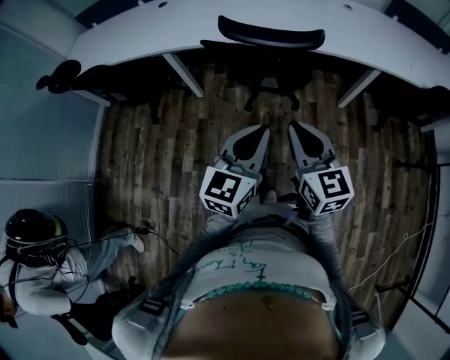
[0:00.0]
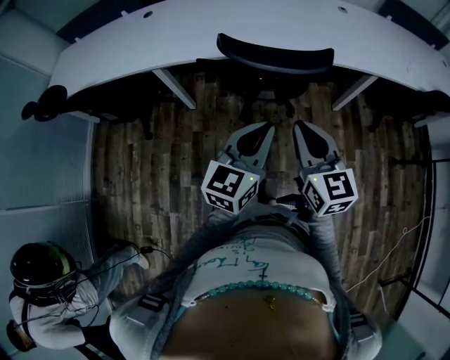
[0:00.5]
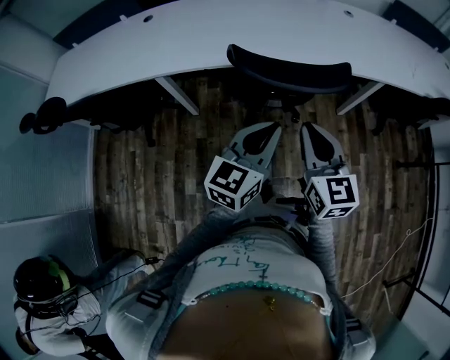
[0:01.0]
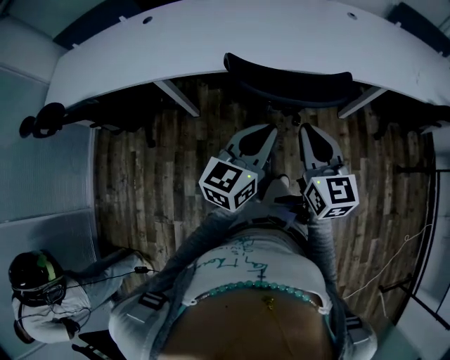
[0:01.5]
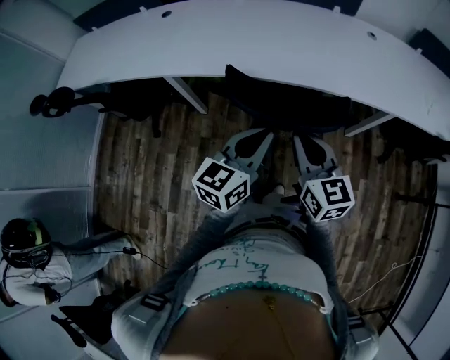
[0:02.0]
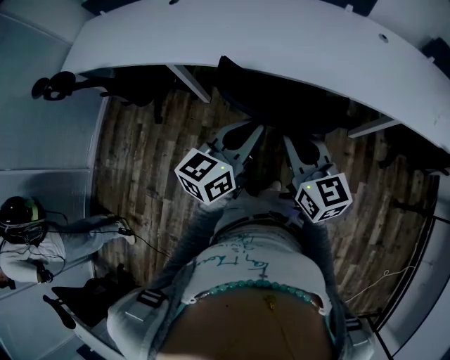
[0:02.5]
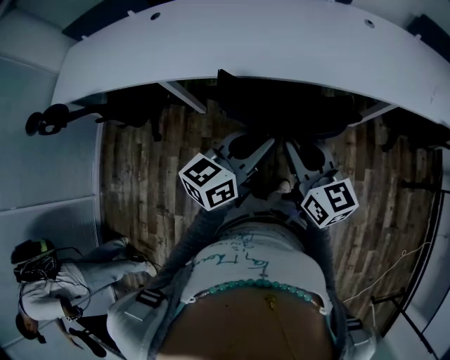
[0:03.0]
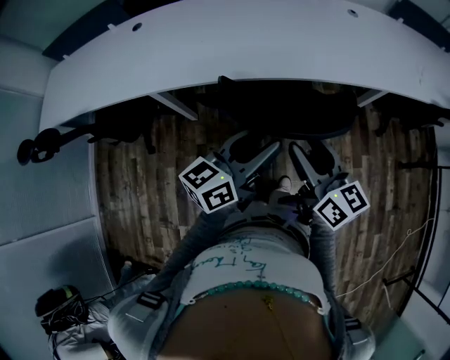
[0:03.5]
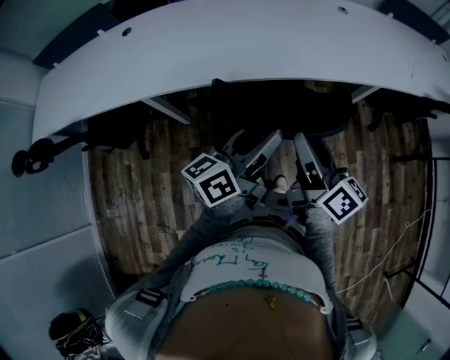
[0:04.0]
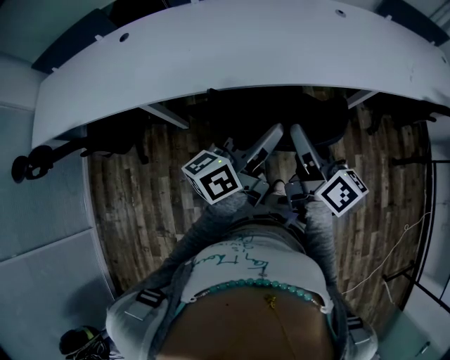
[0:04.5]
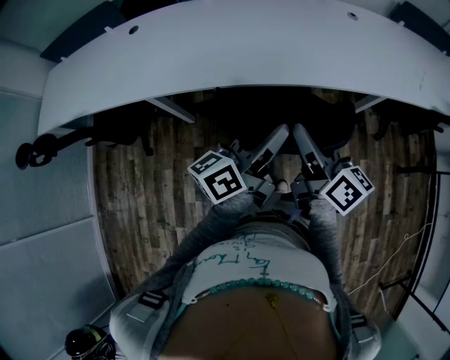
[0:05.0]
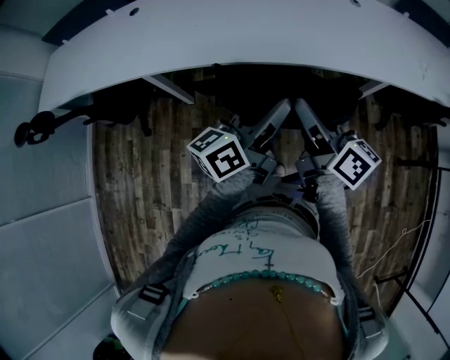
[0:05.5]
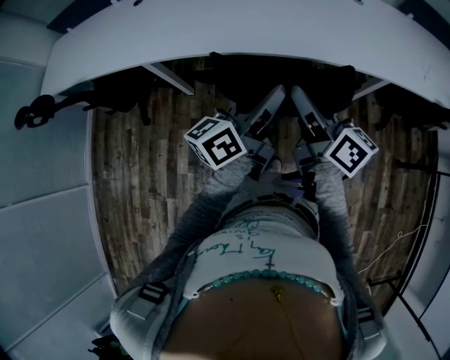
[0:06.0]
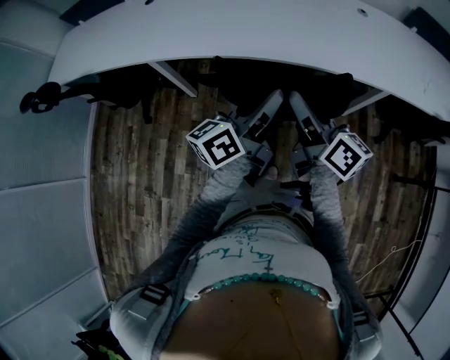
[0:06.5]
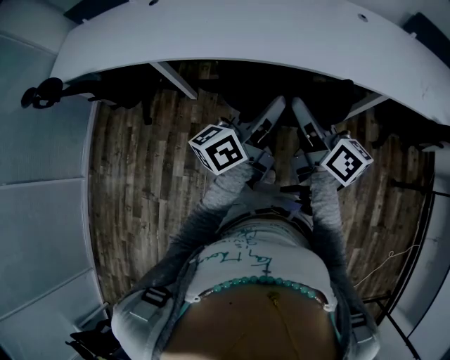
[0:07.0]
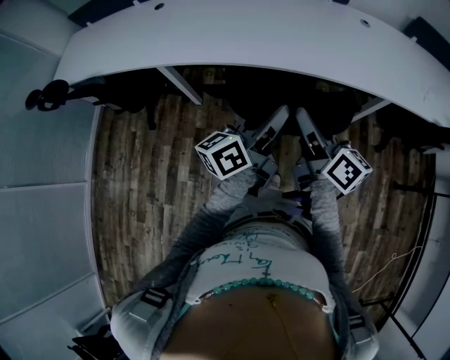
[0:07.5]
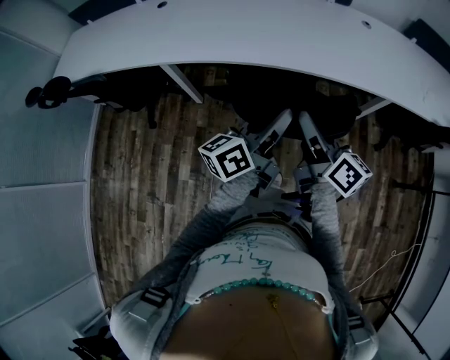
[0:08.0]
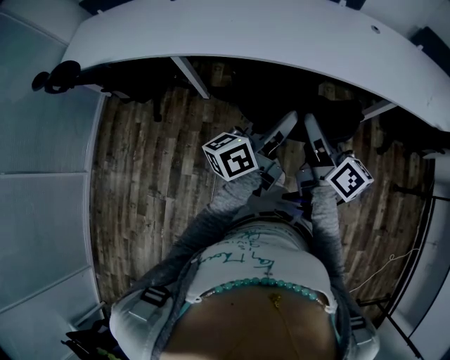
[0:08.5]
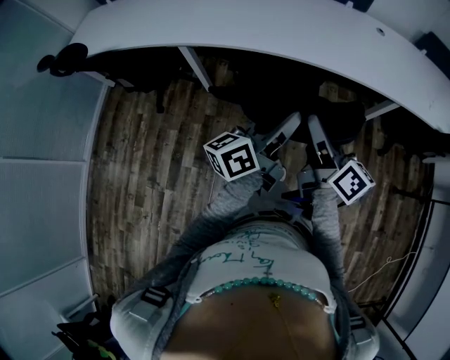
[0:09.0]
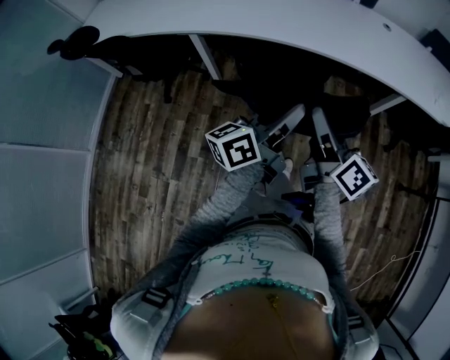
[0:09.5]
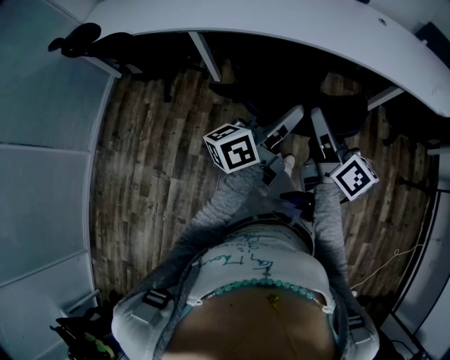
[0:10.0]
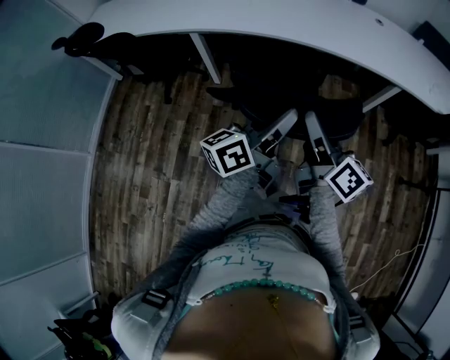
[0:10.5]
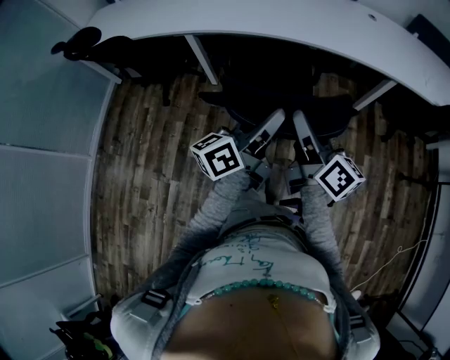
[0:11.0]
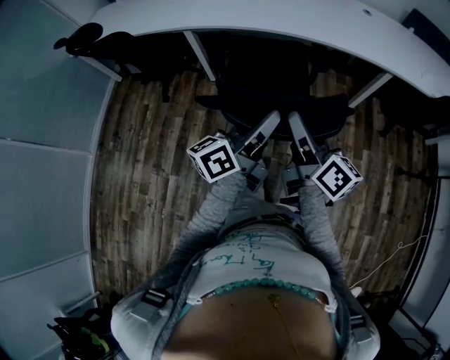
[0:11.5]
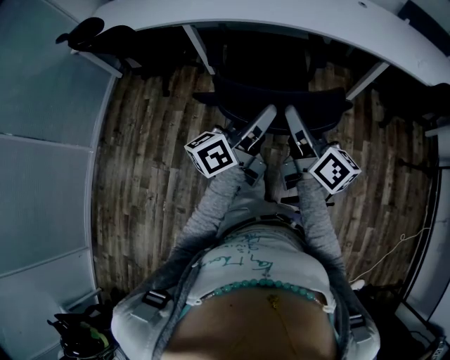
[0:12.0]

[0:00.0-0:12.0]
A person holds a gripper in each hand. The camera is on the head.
0:00.0 to 0:02.0: Both grippers travel together forward, some 20 cm.
0:02.0 to 0:04.0: The left gripper shifts by about 5 cm, changes its angle by about 30 degrees, and opens; the right gripper rotates around the line of its fingers by approximately 40 degrees, clockwise from behind, and opens up.
0:04.0 to 0:06.0: The right gripper changes place by some 5 cm; the left gripper shifts roughly 5 cm to the right.
0:06.0 to 0:08.0: The grippers make only small movements.
0:08.0 to 0:10.0: The two grippers go about 20 cm backward.
0:10.0 to 0:12.0: Both grippers move backward, approximately 15 cm.

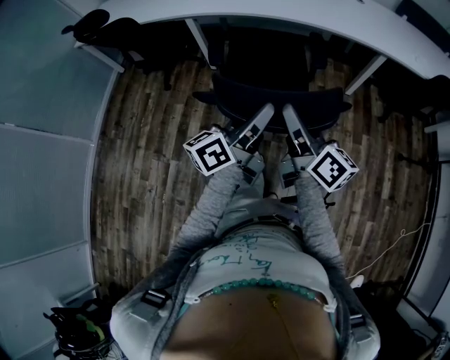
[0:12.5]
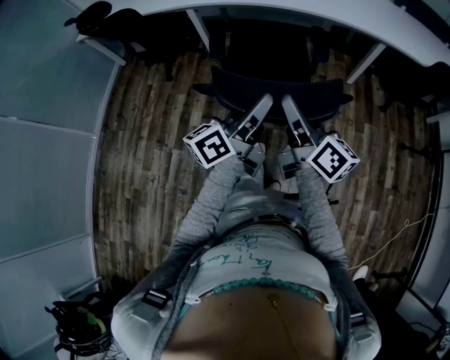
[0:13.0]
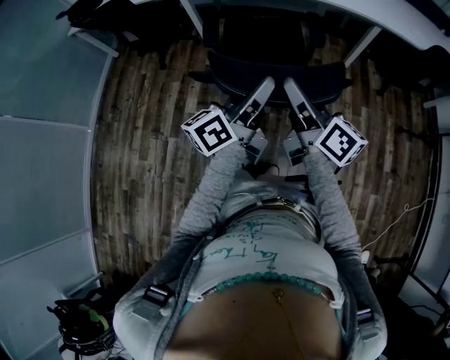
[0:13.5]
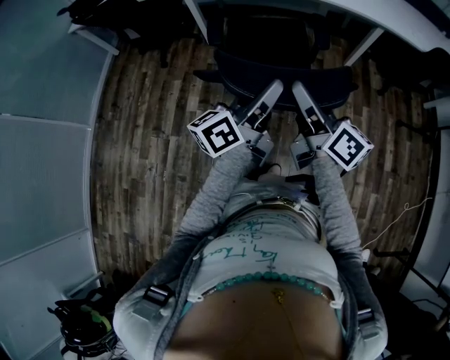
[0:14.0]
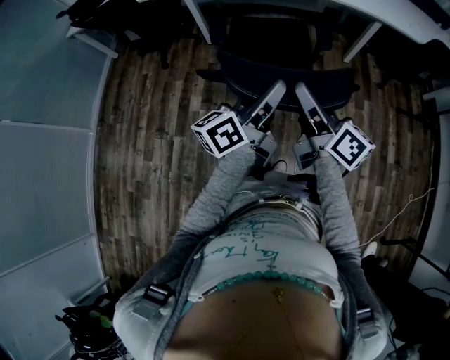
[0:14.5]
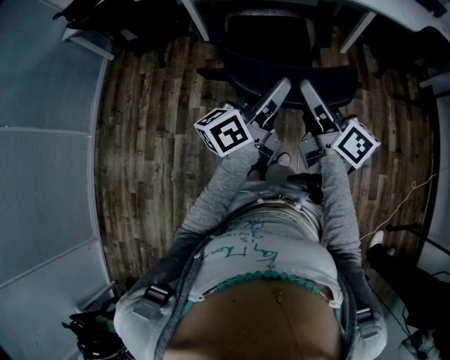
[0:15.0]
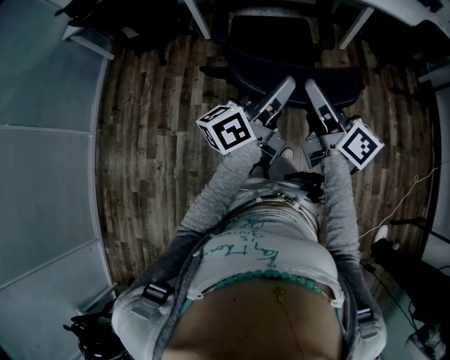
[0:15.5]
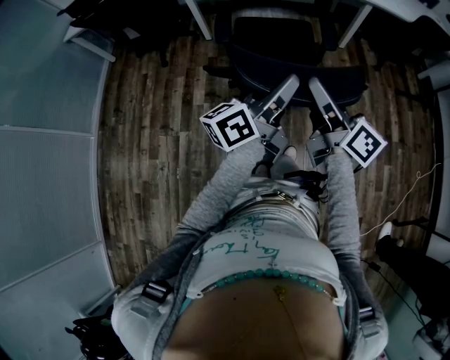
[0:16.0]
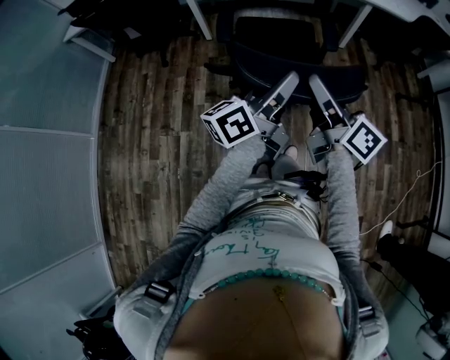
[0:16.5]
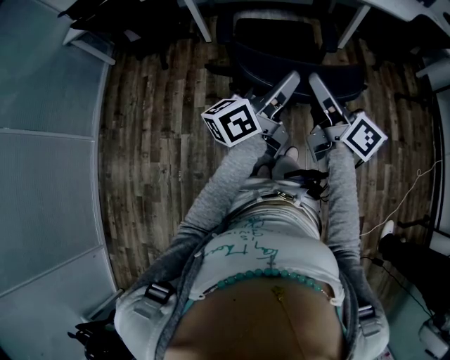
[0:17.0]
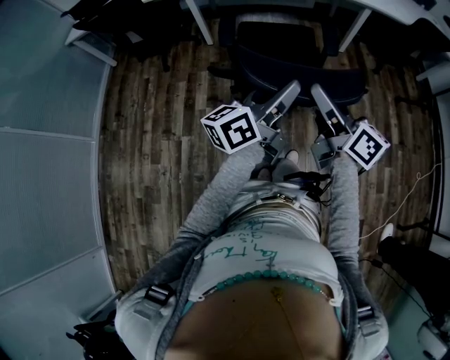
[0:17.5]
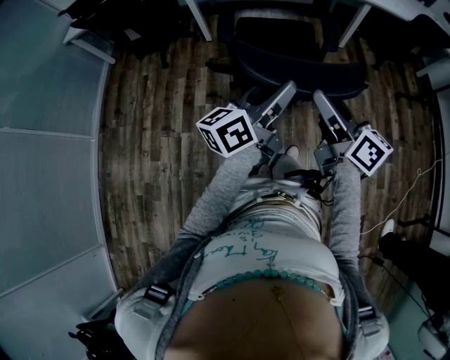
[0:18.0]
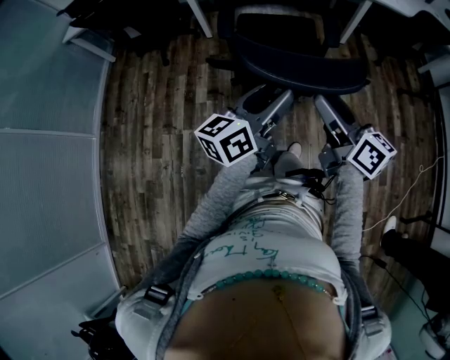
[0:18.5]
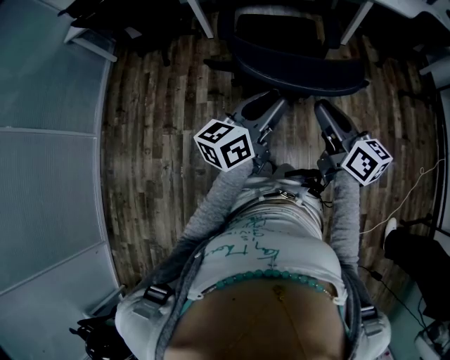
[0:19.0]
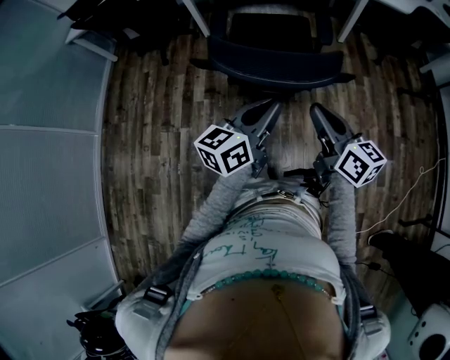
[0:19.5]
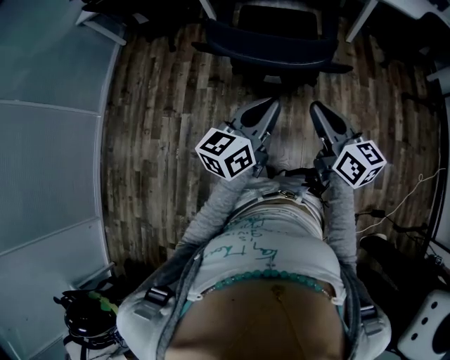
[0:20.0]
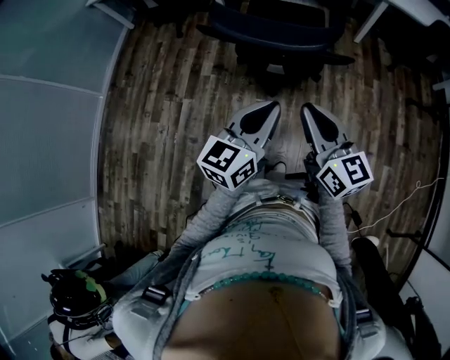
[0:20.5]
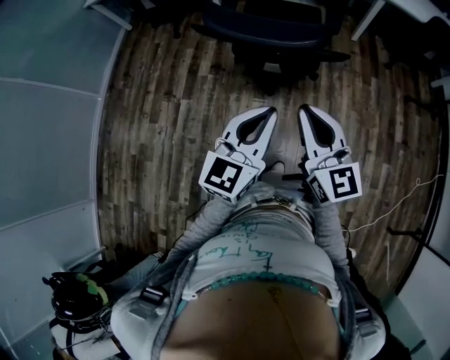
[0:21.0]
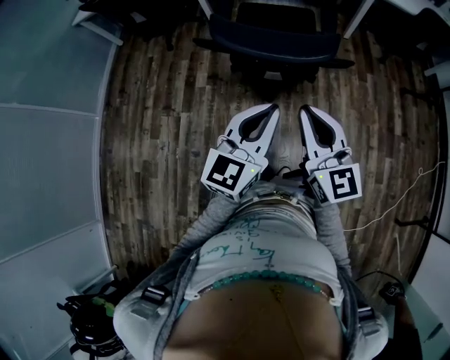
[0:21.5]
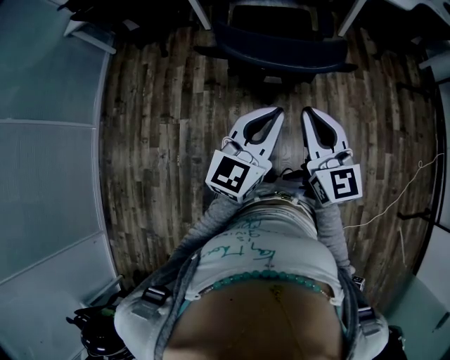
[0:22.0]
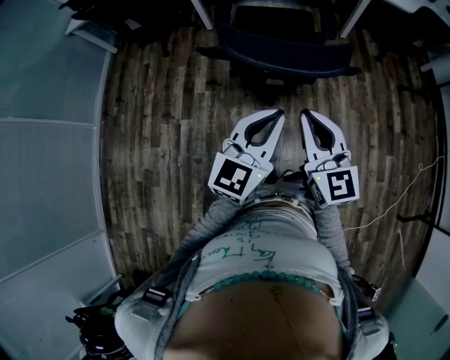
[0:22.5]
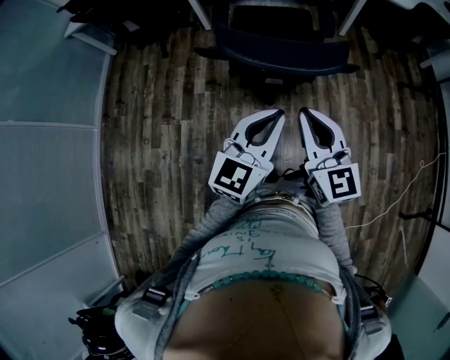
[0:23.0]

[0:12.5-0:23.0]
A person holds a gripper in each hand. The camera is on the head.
0:12.5 to 0:14.5: The two grippers go roughly 10 cm backward.
0:14.5 to 0:16.5: Both grippers travel together backward, some 10 cm.
0:16.5 to 0:19.0: The left gripper changes place by about 5 cm, and turns by roughly 20 degrees, while the right gripper goes roughly 5 cm downward and backward, and closes.
0:19.0 to 0:21.0: The right gripper is displaced backward by approximately 15 cm, and swivels approximately 30 degrees; the left gripper travels backward and to the right by some 20 cm, turns by some 30 degrees, and closes.
0:21.0 to 0:23.0: The right gripper goes roughly 5 cm to the left. Meanwhile the left gripper shifts about 5 cm forward.

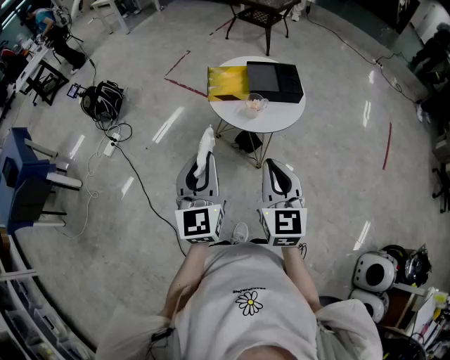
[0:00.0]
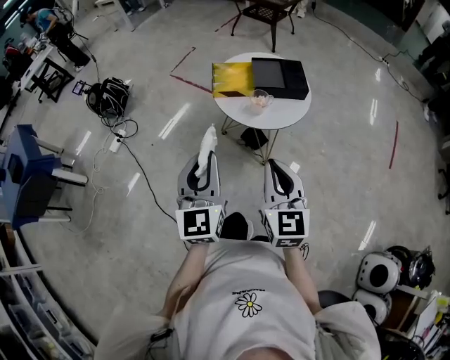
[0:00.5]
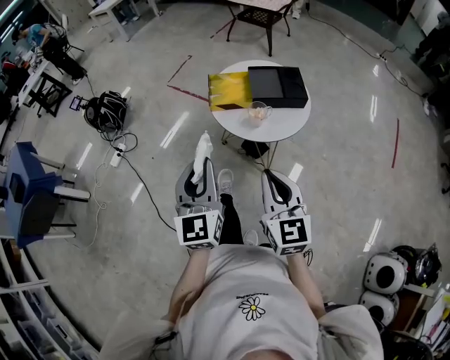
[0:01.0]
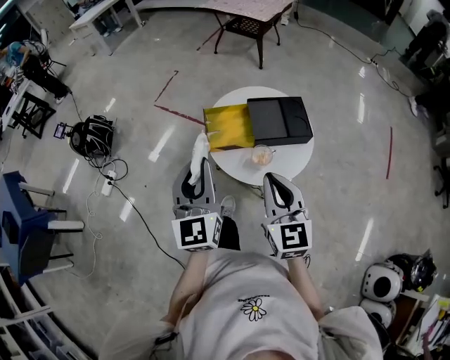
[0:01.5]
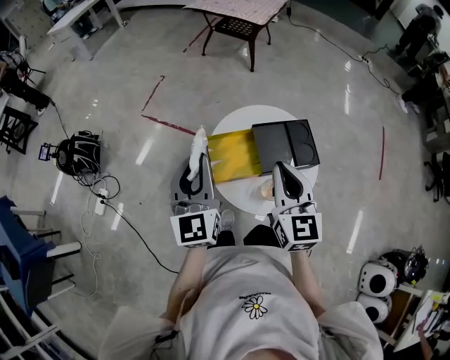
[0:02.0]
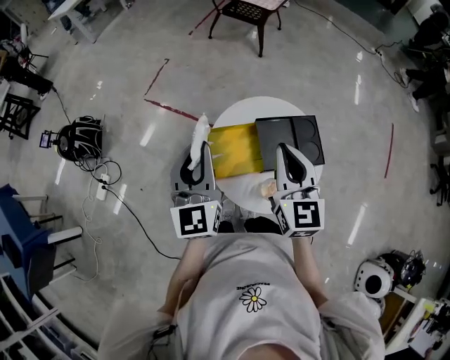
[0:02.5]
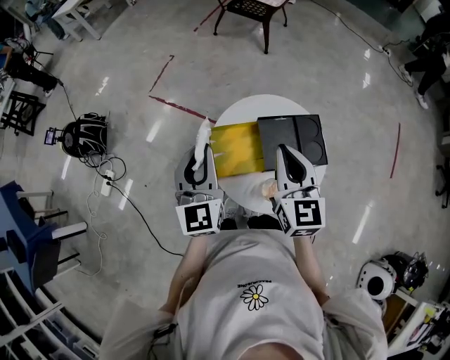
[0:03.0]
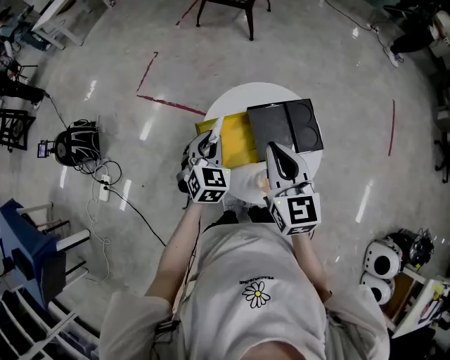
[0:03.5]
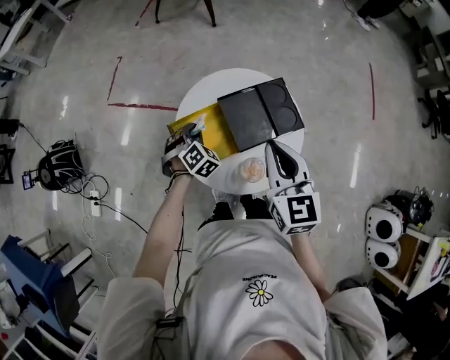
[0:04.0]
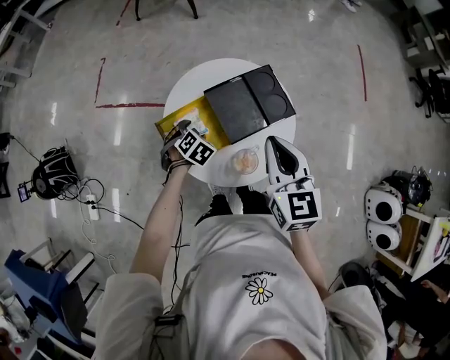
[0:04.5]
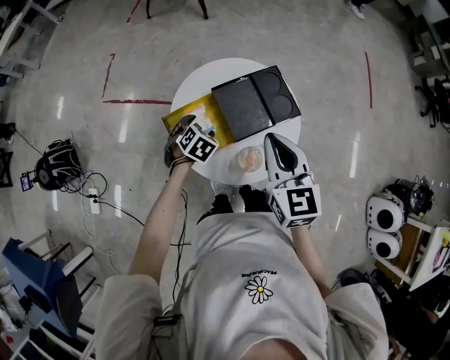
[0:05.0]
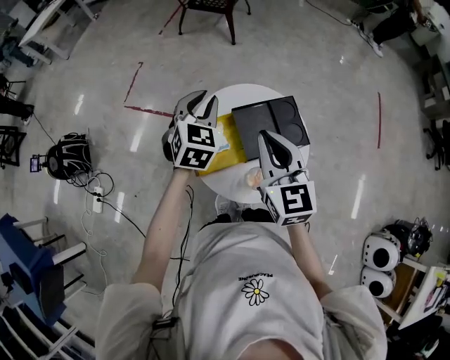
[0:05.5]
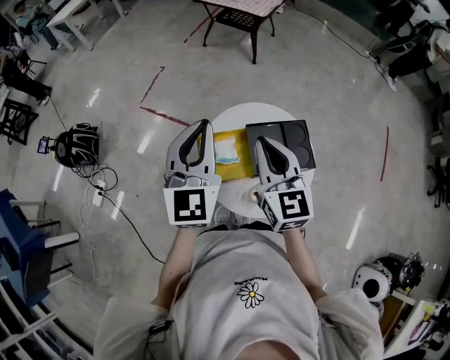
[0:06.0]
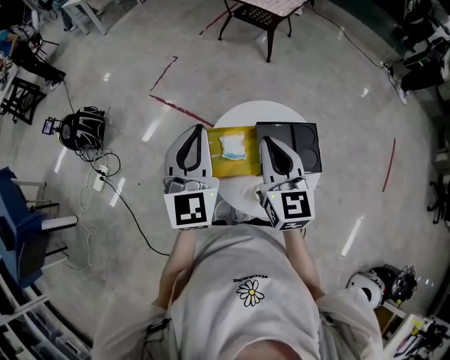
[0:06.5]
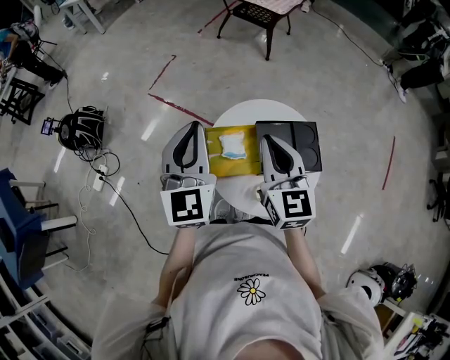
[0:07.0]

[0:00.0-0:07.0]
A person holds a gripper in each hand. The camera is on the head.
0:00.0 to 0:02.0: The grippers both shift forward by some 35 cm.
0:02.0 to 0:03.5: The right gripper moves some 5 cm, while the left gripper is displaced downward, forward and to the right by roughly 20 cm, and angles its fingers downward, by approximately 30 degrees.
0:03.5 to 0:05.0: The left gripper goes approximately 15 cm downward and to the right, angles its fingers downward, by roughly 30 degrees, and opens its fingers, while the right gripper heads to the right, covering about 5 cm.
0:05.0 to 0:07.0: The right gripper ends up some 15 cm from where it was, and turns by approximately 20 degrees; the left gripper moves upward, roughly 35 cm, angles its fingers upward, by some 60 degrees, and closes.
